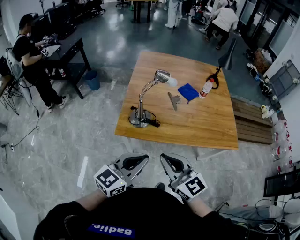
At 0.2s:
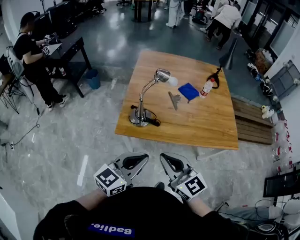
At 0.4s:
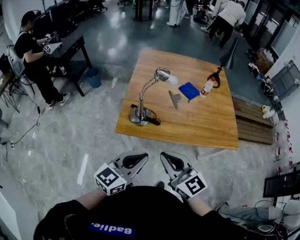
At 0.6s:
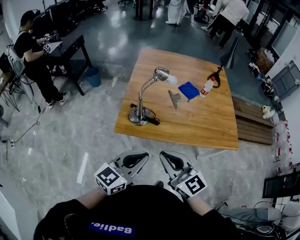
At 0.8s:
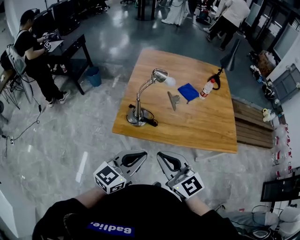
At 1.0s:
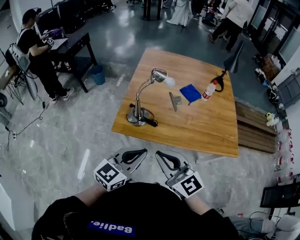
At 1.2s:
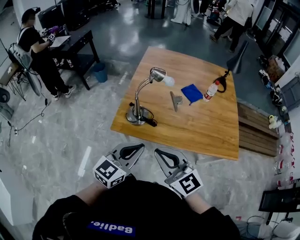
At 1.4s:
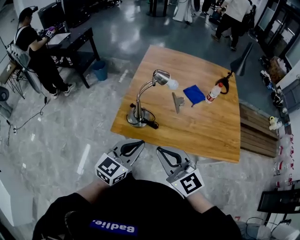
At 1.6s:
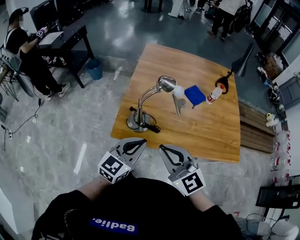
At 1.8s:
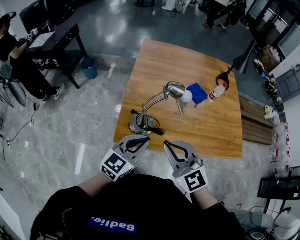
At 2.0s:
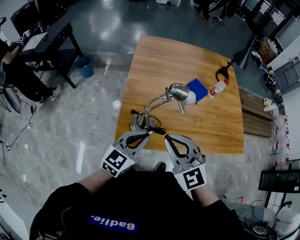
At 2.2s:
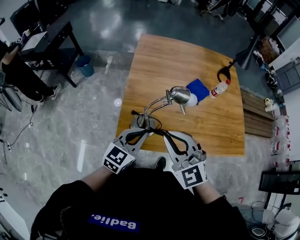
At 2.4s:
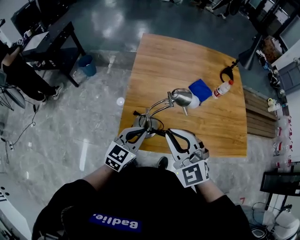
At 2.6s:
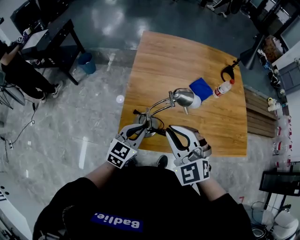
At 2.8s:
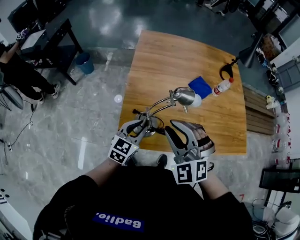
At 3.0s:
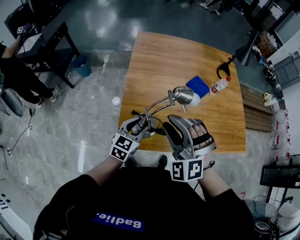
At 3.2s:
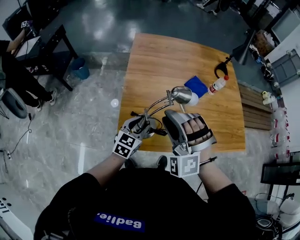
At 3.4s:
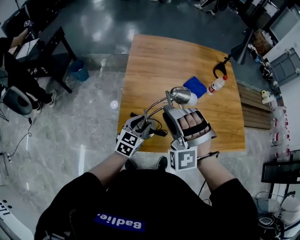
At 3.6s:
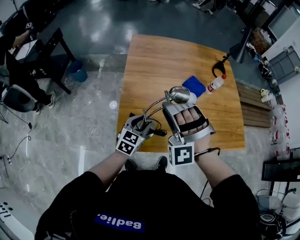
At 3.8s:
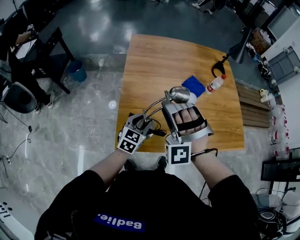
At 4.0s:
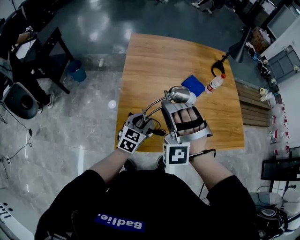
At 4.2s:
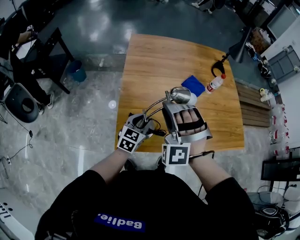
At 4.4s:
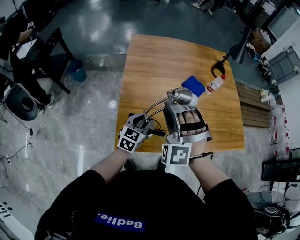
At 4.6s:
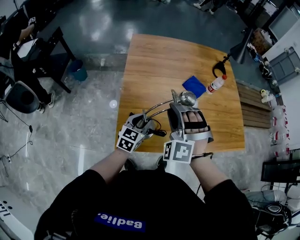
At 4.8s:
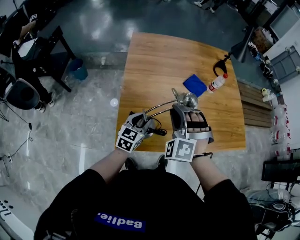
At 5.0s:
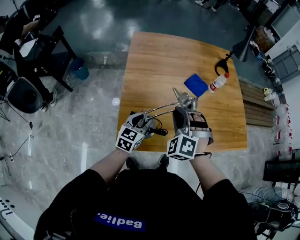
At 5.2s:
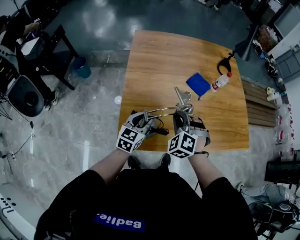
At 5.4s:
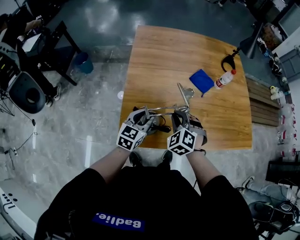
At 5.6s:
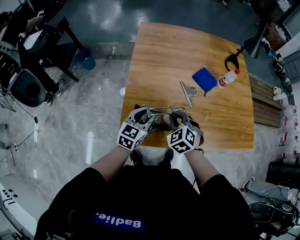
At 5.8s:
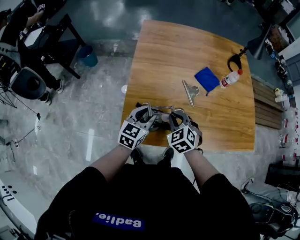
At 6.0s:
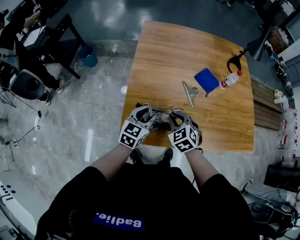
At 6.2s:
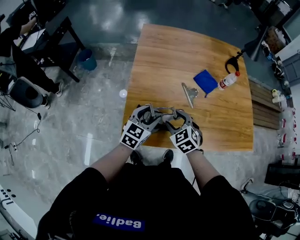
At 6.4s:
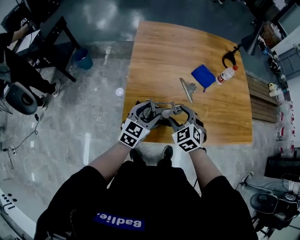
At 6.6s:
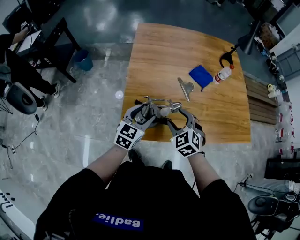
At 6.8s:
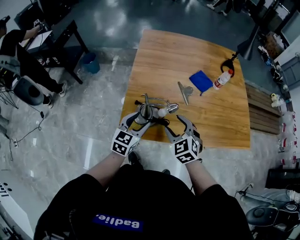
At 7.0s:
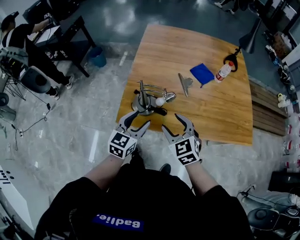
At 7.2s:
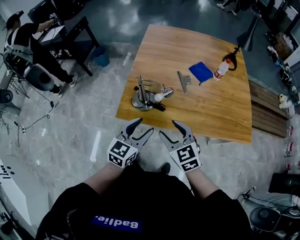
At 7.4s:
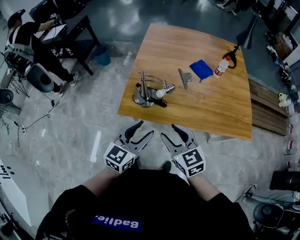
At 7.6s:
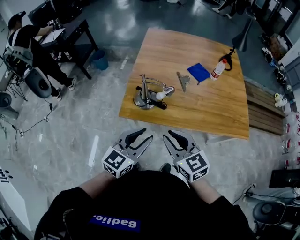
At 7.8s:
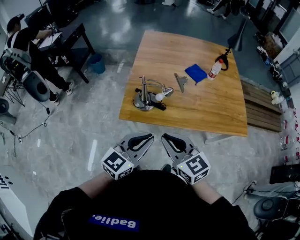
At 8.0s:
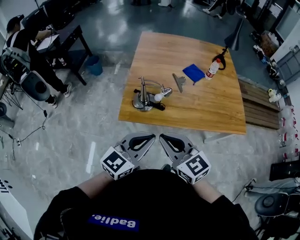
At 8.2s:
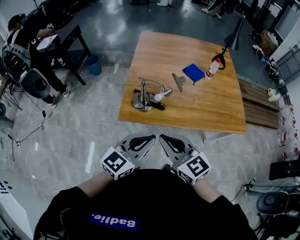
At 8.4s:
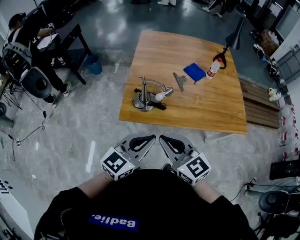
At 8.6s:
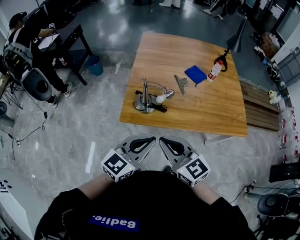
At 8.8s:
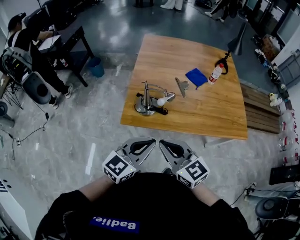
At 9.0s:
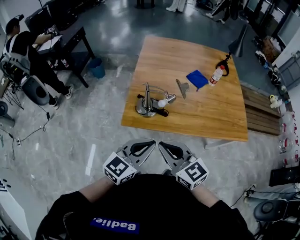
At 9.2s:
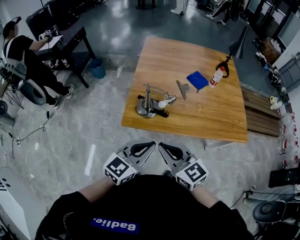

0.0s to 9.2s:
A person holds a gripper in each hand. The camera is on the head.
0.0s to 1.6s: The two grippers go roughly 15 cm forward.
1.6s to 3.0s: The left gripper heads forward, downward and to the left, covering roughly 20 cm, and opens up, while the right gripper is displaced forward and to the left by roughly 15 cm, rotates around the line of its fingers by about 50 degrees, counterclockwise from behind, and opens.
3.0s to 4.6s: The left gripper ends up about 5 cm from where it was. Meanwhile the right gripper moves forward, roughly 5 cm.
4.6s to 6.2s: The left gripper opens up; the right gripper moves downward, about 15 cm, rolls clockwise, seen from behind, by some 50 degrees, and opens its fingers.
6.2s to 7.6s: The grippers both shift backward and upward by some 30 cm. The right gripper rotates some 40 degrees, and closes up.
7.6s to 9.2s: The left gripper closes up. The right gripper moves to the left, approximately 5 cm, and closes.

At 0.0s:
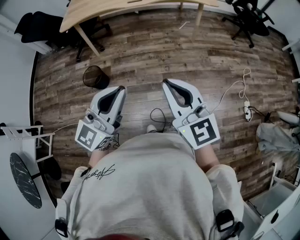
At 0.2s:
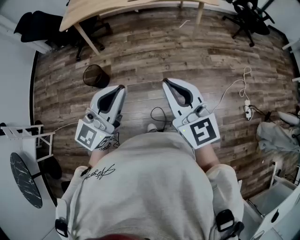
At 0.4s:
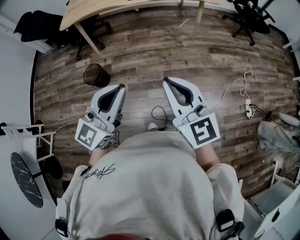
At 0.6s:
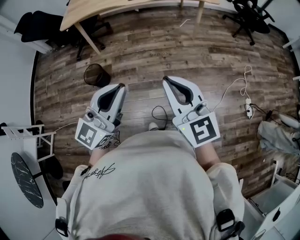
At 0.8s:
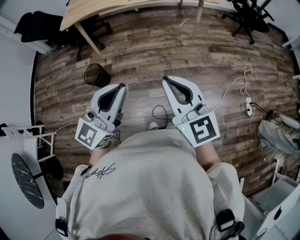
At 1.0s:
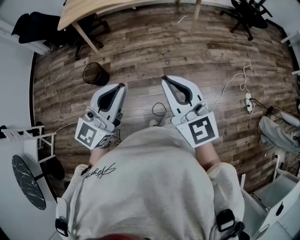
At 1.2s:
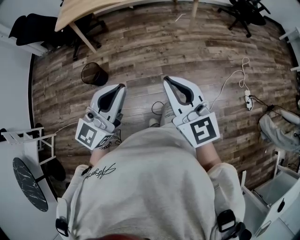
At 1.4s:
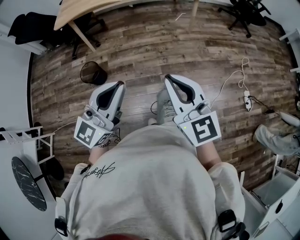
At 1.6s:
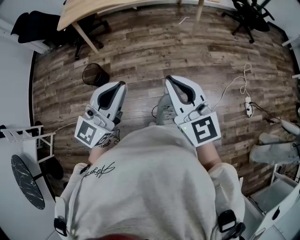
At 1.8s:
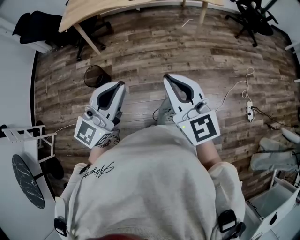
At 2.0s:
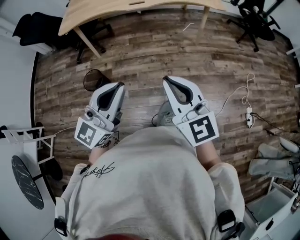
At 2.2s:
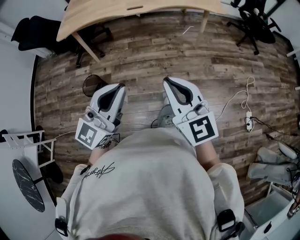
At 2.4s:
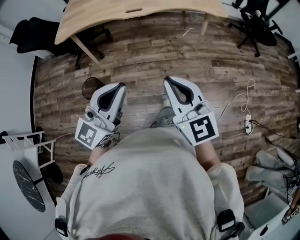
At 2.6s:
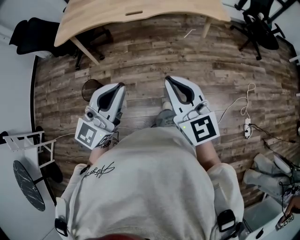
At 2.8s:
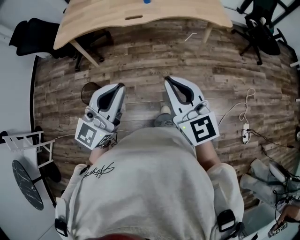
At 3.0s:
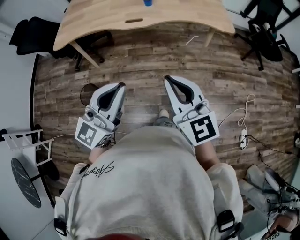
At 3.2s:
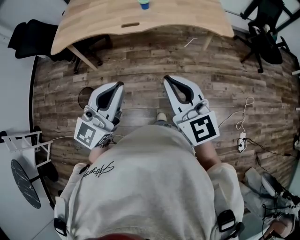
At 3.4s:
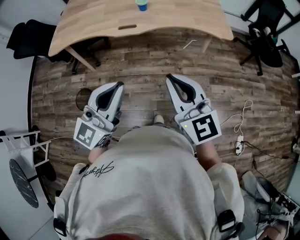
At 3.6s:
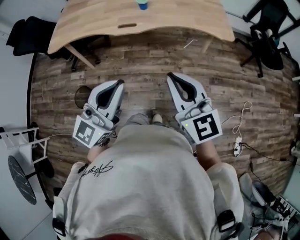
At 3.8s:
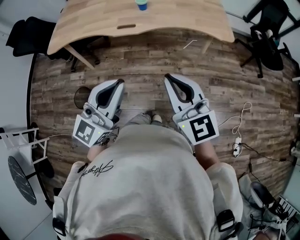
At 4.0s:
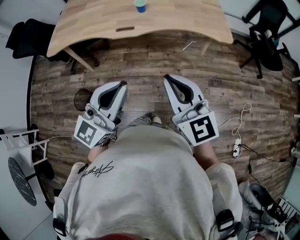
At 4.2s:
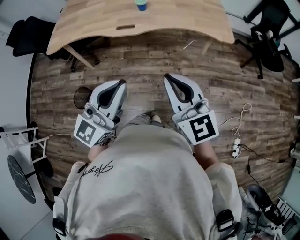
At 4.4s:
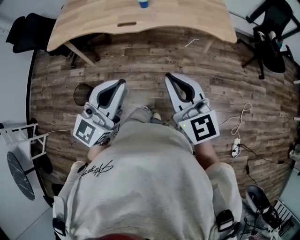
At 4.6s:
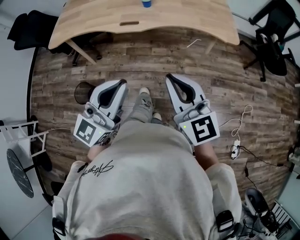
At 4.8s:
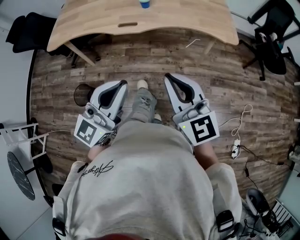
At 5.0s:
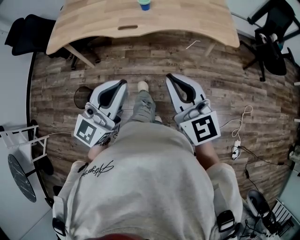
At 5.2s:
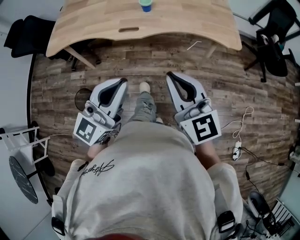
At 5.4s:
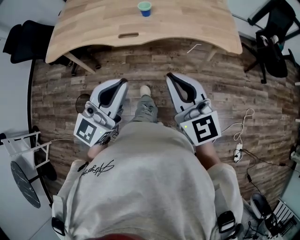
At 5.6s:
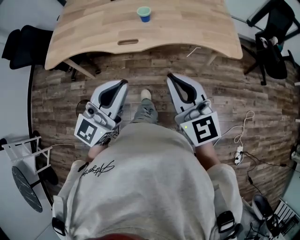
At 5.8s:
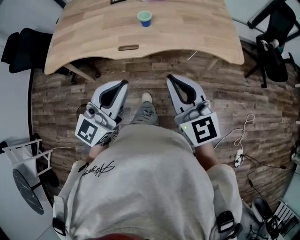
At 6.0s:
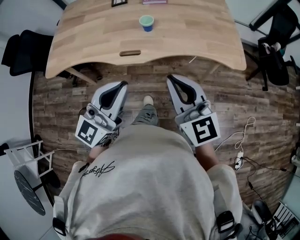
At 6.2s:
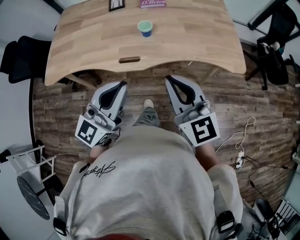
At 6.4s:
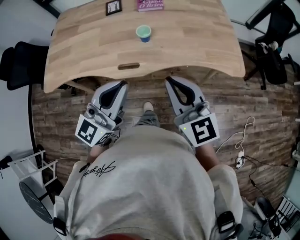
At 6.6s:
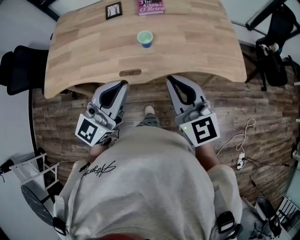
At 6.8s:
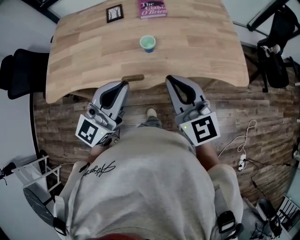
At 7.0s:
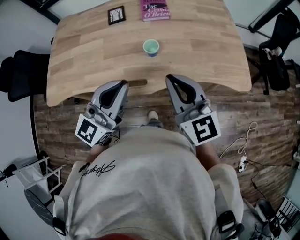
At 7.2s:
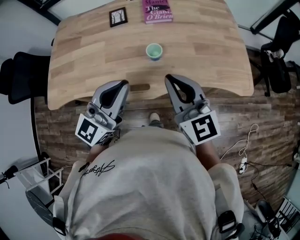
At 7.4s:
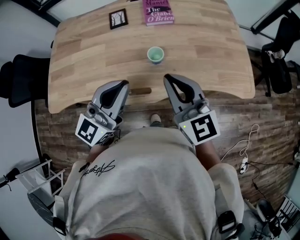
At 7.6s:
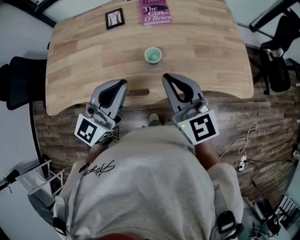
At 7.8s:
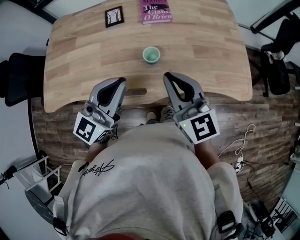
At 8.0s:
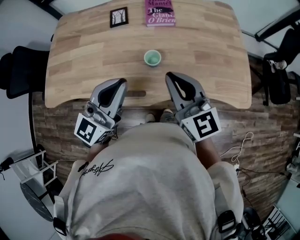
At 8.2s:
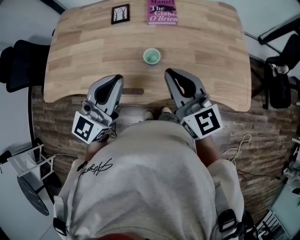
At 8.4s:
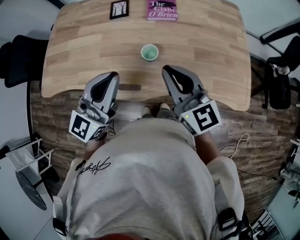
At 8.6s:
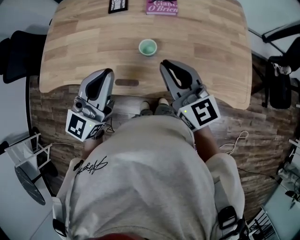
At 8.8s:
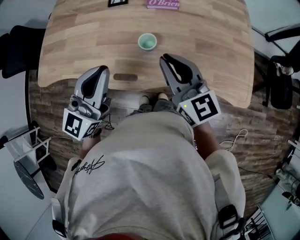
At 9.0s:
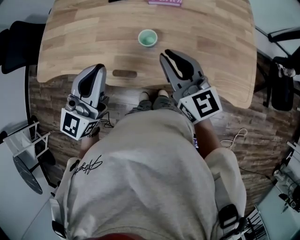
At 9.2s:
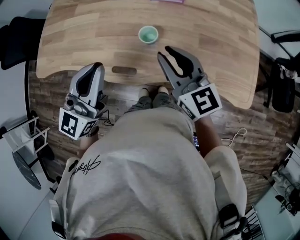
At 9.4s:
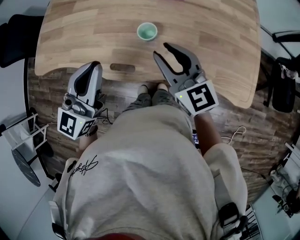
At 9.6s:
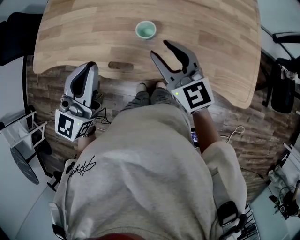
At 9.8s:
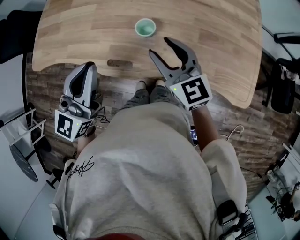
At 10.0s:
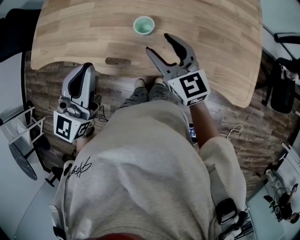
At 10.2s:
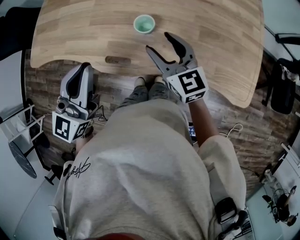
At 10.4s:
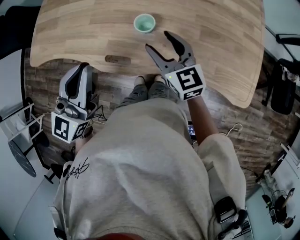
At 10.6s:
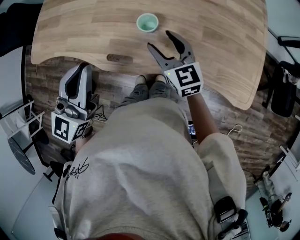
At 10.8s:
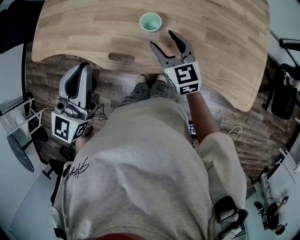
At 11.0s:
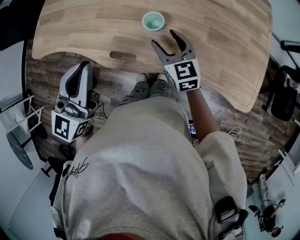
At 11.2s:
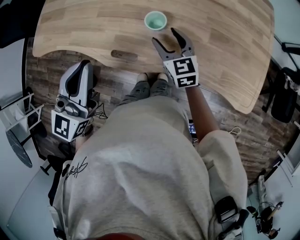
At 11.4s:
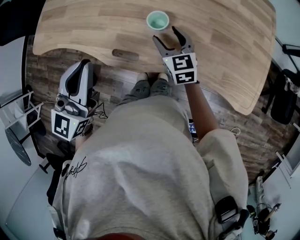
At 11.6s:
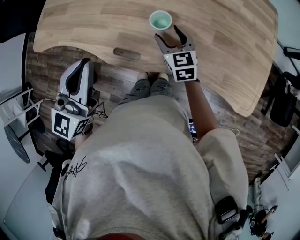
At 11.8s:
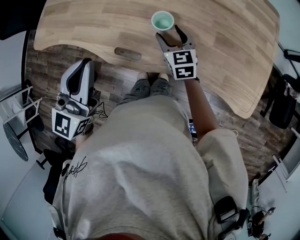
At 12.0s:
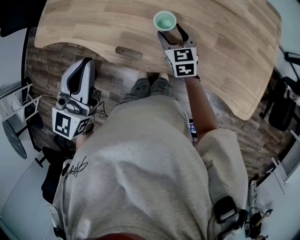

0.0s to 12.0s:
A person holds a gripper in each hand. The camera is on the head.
0.0s to 1.6s: The grippers move only a little.
1.6s to 3.0s: The grippers both shift forward by about 30 cm.
3.0s to 4.4s: Both grippers travel together forward and to the right, about 10 cm.
4.4s to 6.0s: The two grippers go approximately 20 cm forward.
6.0s to 7.6s: The two grippers go about 20 cm forward.
7.6s to 9.0s: The left gripper swivels approximately 20 degrees, while the right gripper moves forward, about 5 cm.
9.0s to 10.4s: The right gripper travels downward by roughly 10 cm, and opens.
10.4s to 12.0s: The right gripper shifts some 15 cm downward and forward.

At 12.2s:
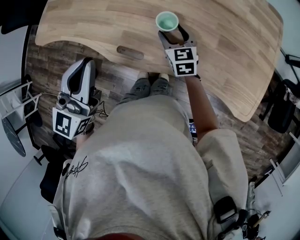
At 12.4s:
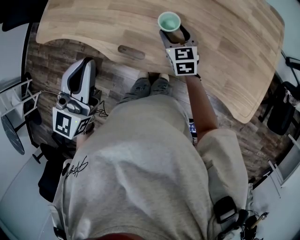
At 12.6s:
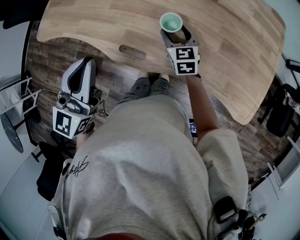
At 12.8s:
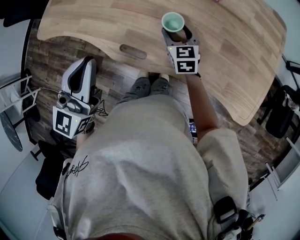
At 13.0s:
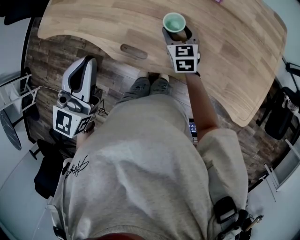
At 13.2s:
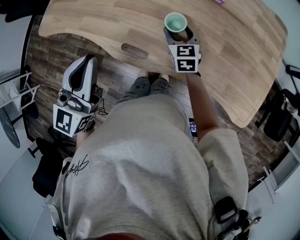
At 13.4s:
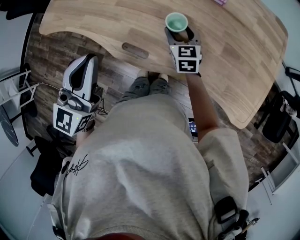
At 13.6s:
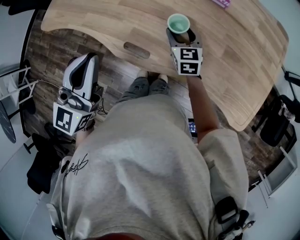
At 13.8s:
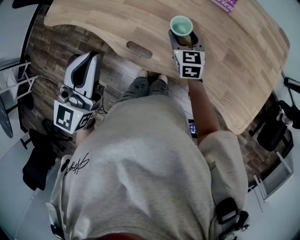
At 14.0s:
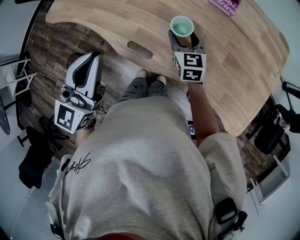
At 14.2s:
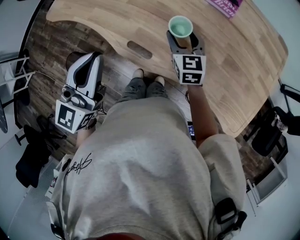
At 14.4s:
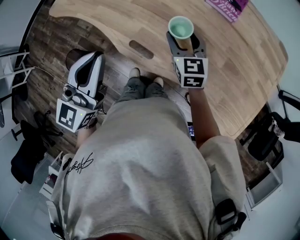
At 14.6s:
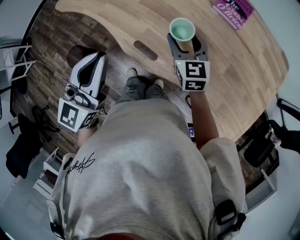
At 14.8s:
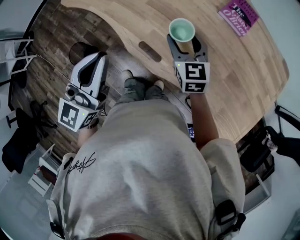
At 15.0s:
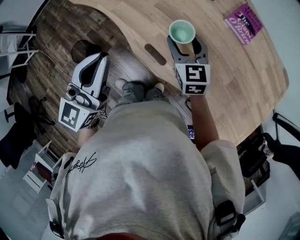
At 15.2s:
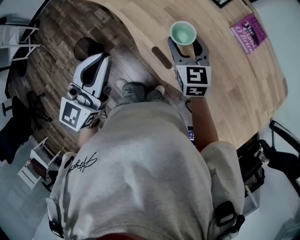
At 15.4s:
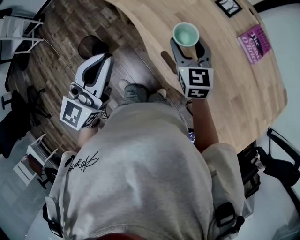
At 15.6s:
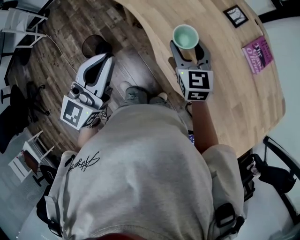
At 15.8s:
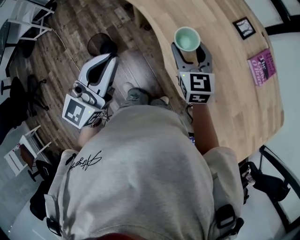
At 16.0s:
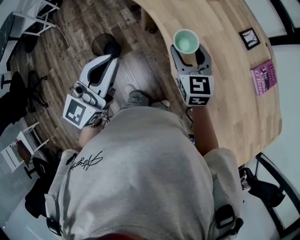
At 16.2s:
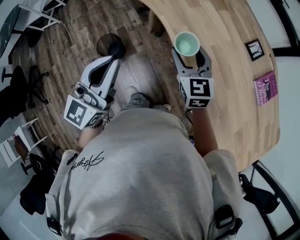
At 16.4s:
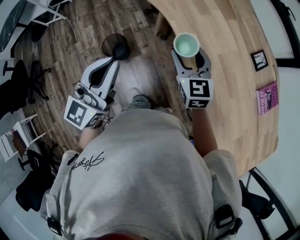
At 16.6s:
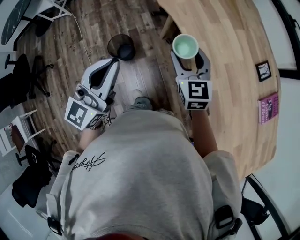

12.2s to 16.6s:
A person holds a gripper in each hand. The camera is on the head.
12.2s to 13.6s: The grippers move only a little.
13.6s to 15.2s: The left gripper heads to the left, covering some 10 cm. The right gripper travels to the left and upward by roughly 20 cm, and changes its angle by some 30 degrees.
15.2s to 16.6s: The grippers both shift to the left by some 25 cm. The right gripper swivels about 20 degrees. Meanwhile the left gripper rotates some 20 degrees.
